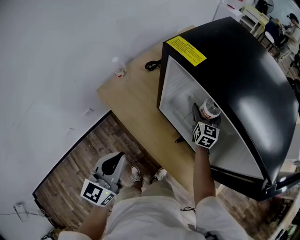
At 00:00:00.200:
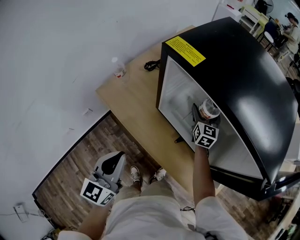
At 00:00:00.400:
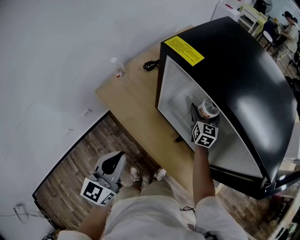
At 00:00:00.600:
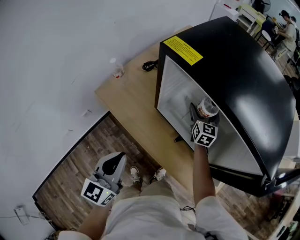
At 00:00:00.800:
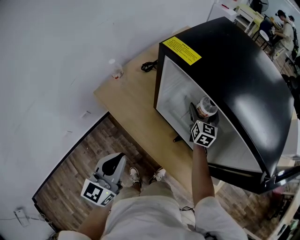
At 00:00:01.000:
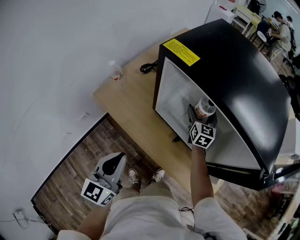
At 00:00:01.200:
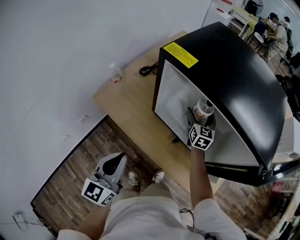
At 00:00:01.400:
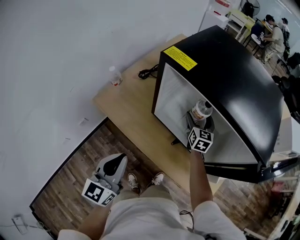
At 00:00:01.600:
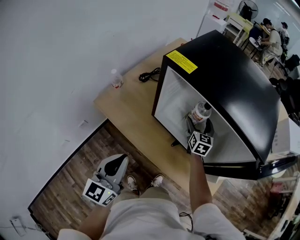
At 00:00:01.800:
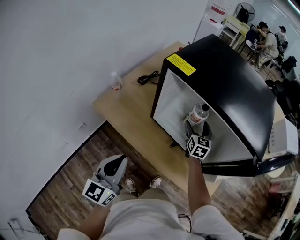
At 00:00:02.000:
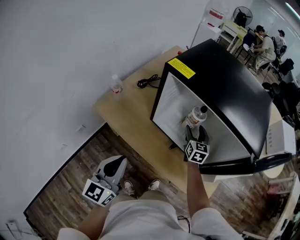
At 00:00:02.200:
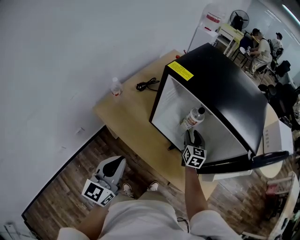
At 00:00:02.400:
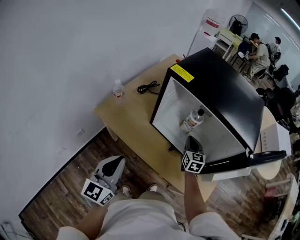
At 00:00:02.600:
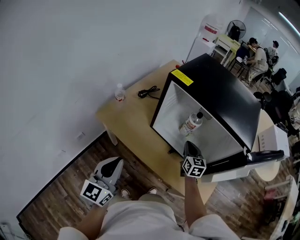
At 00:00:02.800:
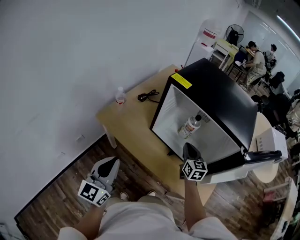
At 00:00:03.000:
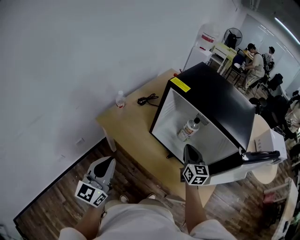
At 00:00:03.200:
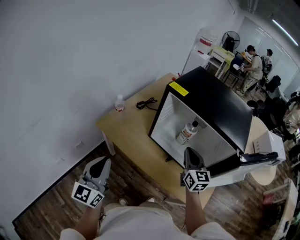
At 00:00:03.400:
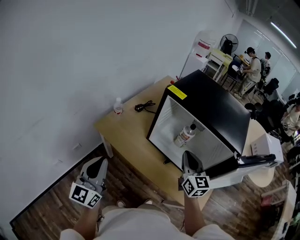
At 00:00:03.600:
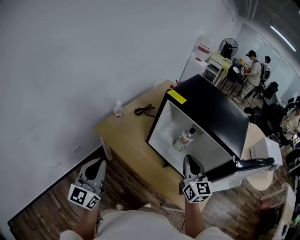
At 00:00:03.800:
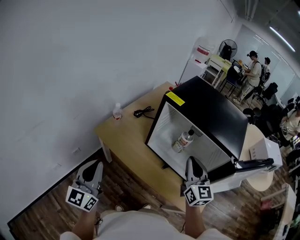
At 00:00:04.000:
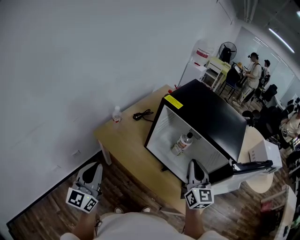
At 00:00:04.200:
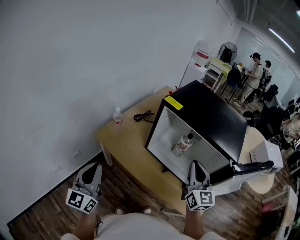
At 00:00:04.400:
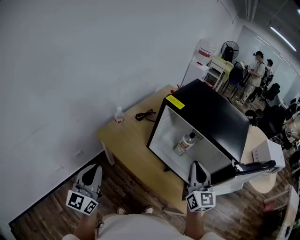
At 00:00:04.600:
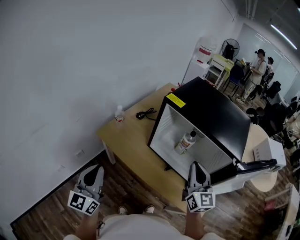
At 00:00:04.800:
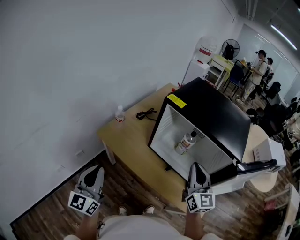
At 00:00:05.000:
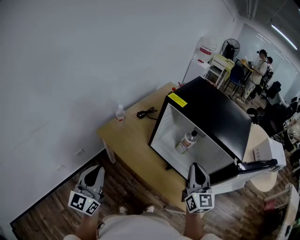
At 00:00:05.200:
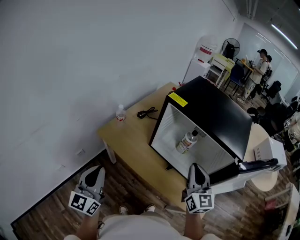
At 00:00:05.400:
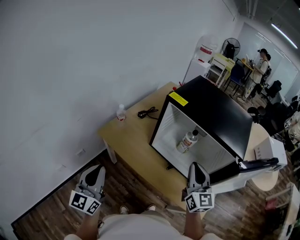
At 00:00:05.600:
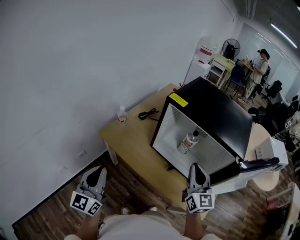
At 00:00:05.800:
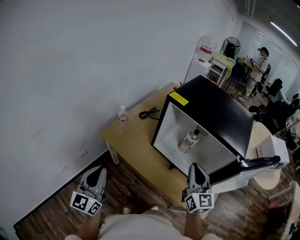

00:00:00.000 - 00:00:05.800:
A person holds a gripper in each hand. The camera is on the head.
00:00:00.000 - 00:00:01.400: The grippers make only small movements.
00:00:01.400 - 00:00:02.800: The left gripper is displaced to the left and backward by about 10 cm. The right gripper travels backward and upward by some 15 cm, and closes up.
00:00:02.800 - 00:00:04.400: The right gripper heads upward and backward, covering approximately 20 cm, and turns by approximately 20 degrees. Meanwhile the left gripper heads to the left, covering some 5 cm.
00:00:04.400 - 00:00:05.800: The grippers move only a little.

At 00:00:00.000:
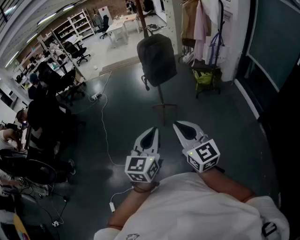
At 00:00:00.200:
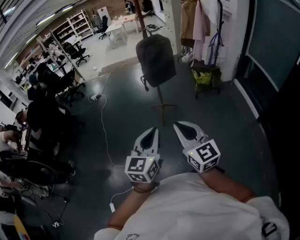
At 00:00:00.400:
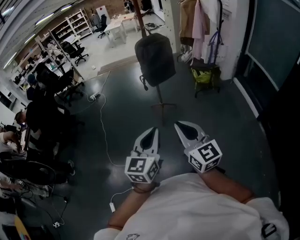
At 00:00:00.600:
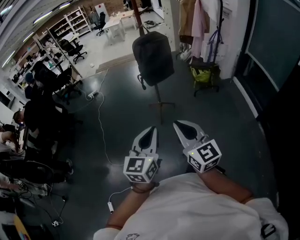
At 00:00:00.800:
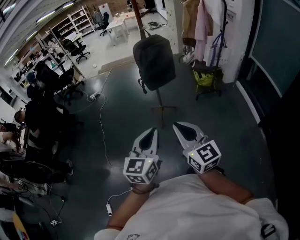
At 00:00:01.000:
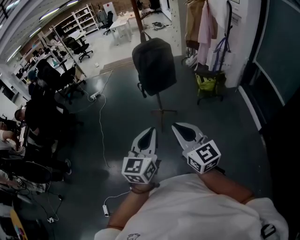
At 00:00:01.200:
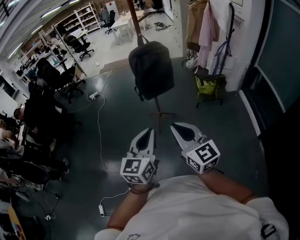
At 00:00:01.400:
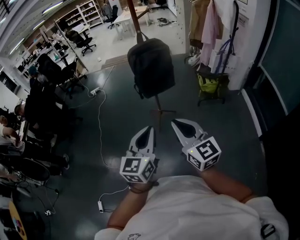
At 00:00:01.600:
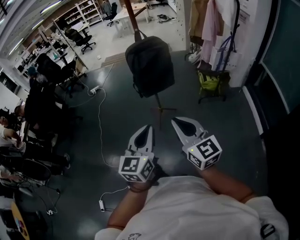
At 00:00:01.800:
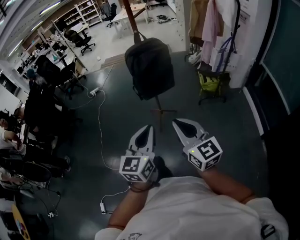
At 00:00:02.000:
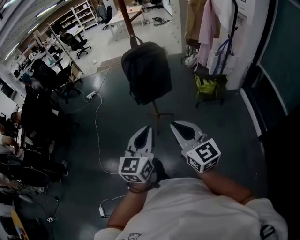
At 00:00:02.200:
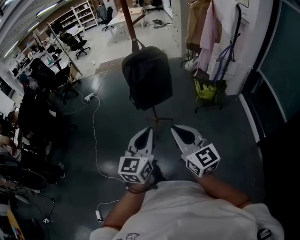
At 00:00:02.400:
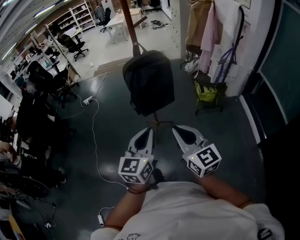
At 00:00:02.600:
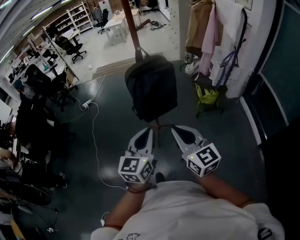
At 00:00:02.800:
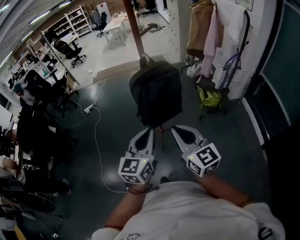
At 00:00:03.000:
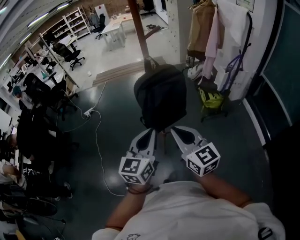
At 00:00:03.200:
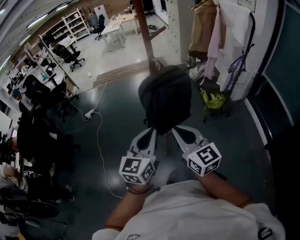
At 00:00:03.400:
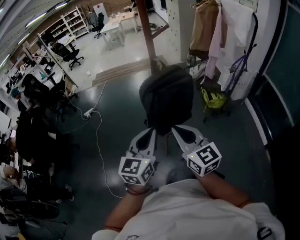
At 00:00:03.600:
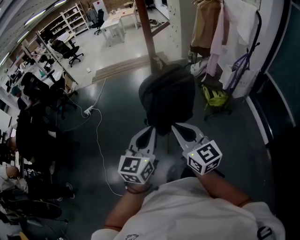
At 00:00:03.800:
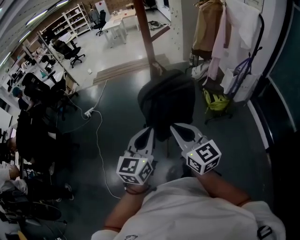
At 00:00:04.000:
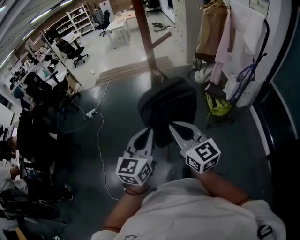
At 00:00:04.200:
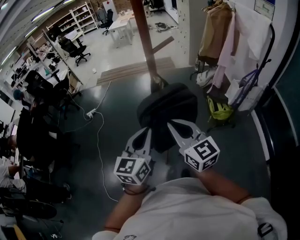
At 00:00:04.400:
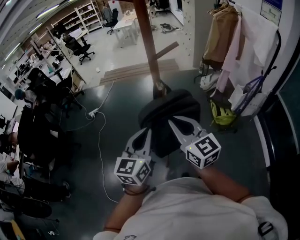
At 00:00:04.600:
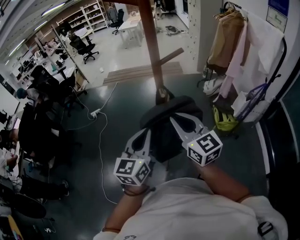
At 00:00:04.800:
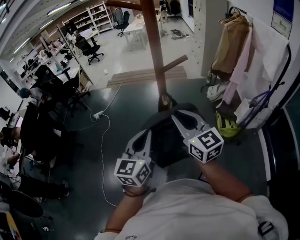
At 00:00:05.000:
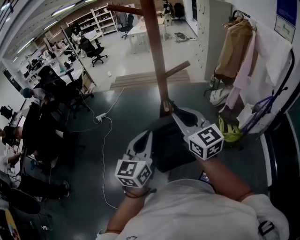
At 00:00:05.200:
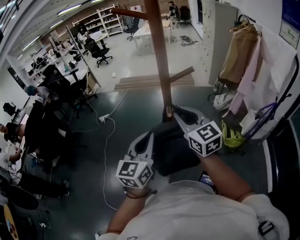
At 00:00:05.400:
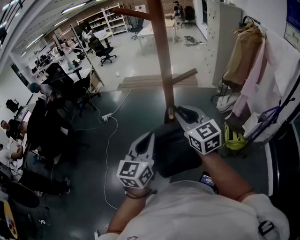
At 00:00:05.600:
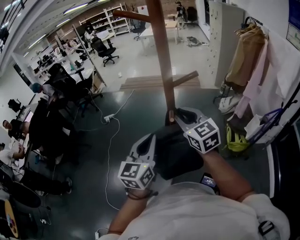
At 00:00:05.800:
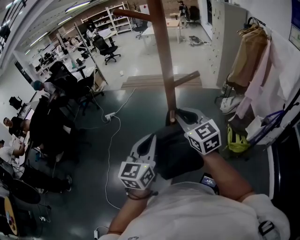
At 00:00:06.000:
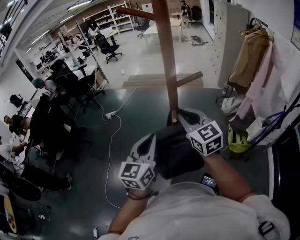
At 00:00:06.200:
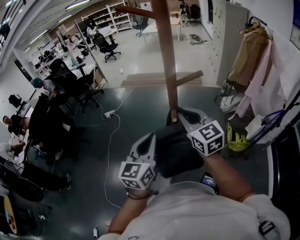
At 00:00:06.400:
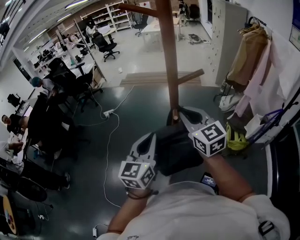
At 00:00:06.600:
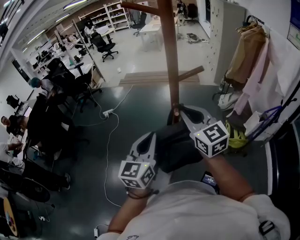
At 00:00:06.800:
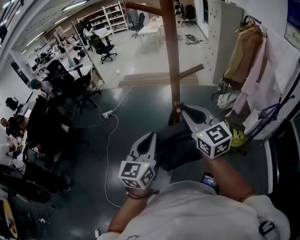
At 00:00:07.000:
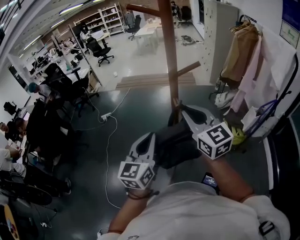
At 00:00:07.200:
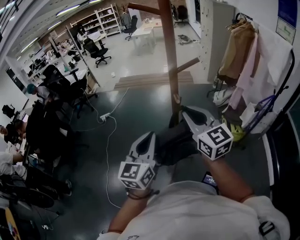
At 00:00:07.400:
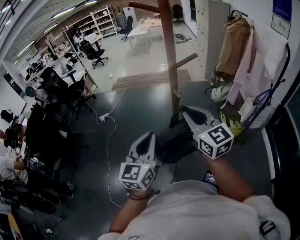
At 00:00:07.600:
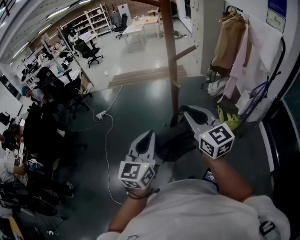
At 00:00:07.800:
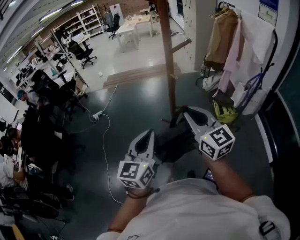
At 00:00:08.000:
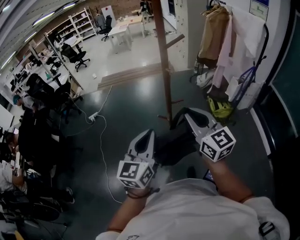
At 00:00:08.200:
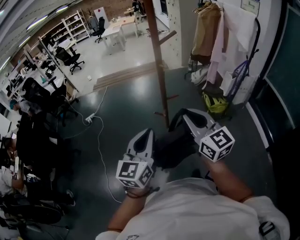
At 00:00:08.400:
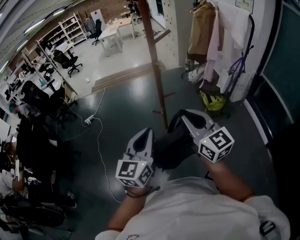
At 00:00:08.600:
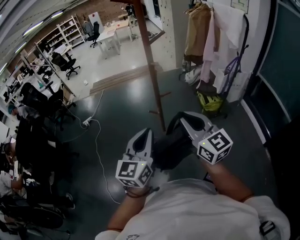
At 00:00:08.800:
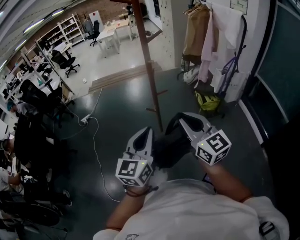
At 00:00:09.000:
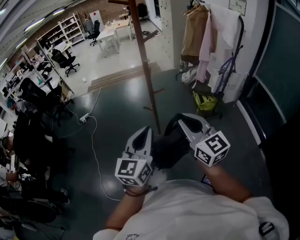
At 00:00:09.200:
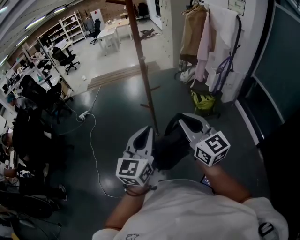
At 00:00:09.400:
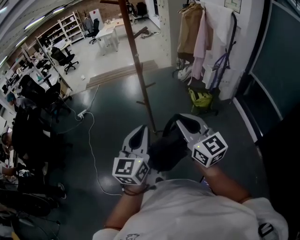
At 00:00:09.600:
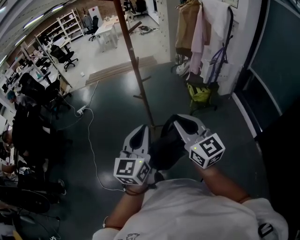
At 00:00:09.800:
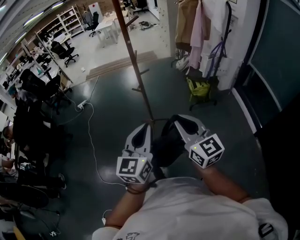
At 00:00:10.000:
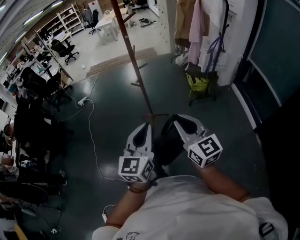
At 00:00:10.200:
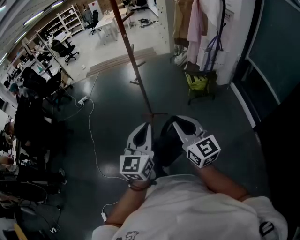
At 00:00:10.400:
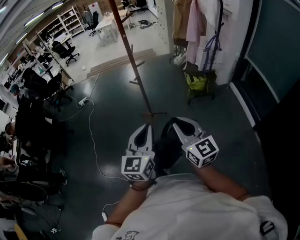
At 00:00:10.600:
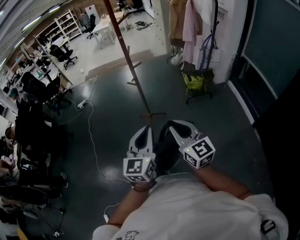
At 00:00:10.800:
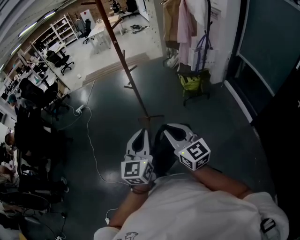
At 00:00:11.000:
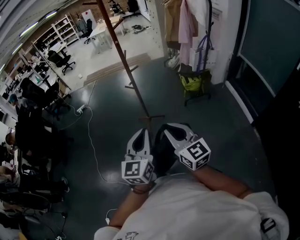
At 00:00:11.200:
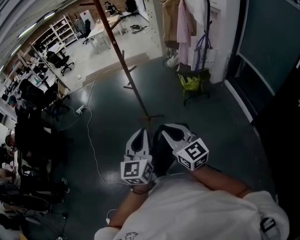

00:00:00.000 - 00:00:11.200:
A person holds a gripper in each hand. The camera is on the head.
00:00:00.000 - 00:00:01.600: The two grippers go about 25 cm forward and to the right.
00:00:01.600 - 00:00:03.200: The two grippers go some 30 cm forward.
00:00:03.200 - 00:00:04.800: Both grippers move forward, about 25 cm.
00:00:04.800 - 00:00:06.400: The right gripper shifts some 10 cm forward.
00:00:06.400 - 00:00:08.000: The right gripper goes some 25 cm backward. The left gripper heads backward and to the left, covering approximately 20 cm.
00:00:08.000 - 00:00:09.600: The left gripper moves backward and to the right, some 25 cm. The right gripper travels backward by about 25 cm.
00:00:09.600 - 00:00:11.200: The right gripper moves backward and downward, approximately 15 cm. The left gripper travels backward by about 15 cm.

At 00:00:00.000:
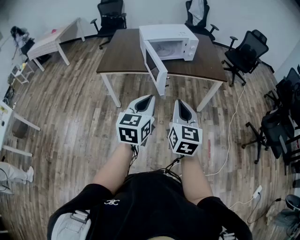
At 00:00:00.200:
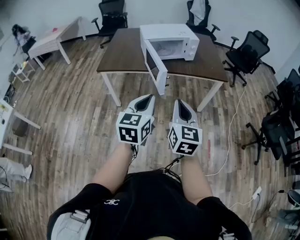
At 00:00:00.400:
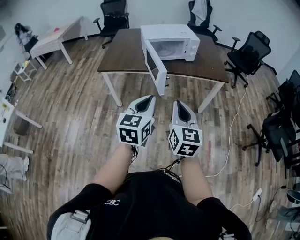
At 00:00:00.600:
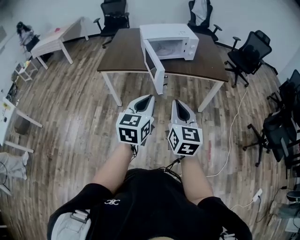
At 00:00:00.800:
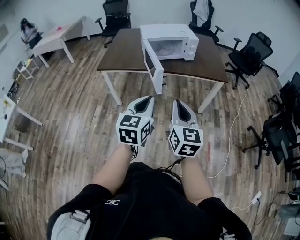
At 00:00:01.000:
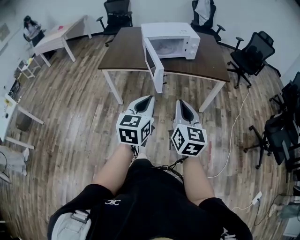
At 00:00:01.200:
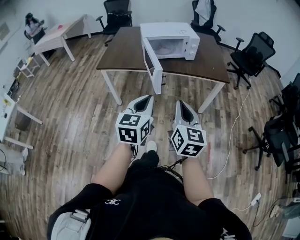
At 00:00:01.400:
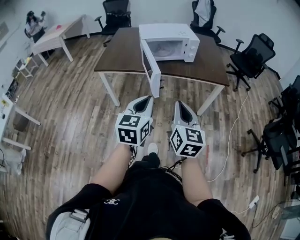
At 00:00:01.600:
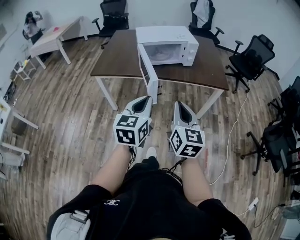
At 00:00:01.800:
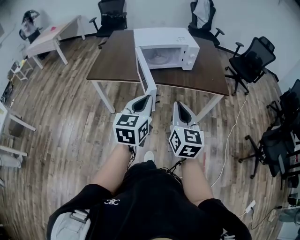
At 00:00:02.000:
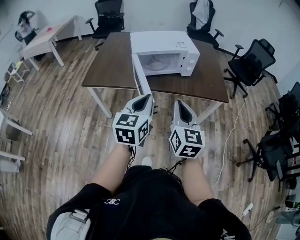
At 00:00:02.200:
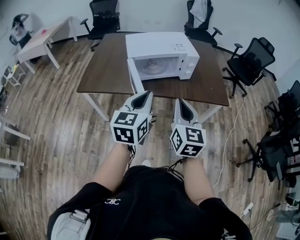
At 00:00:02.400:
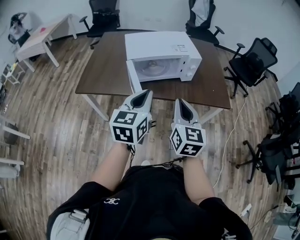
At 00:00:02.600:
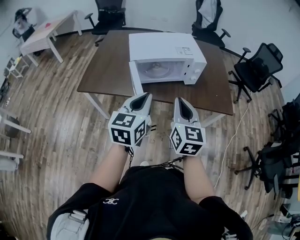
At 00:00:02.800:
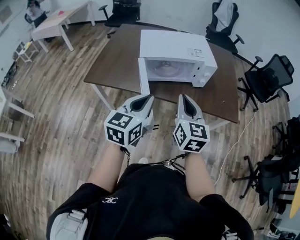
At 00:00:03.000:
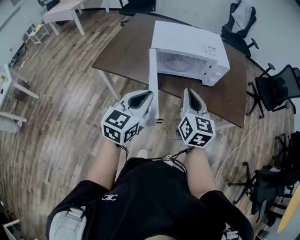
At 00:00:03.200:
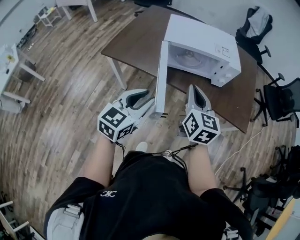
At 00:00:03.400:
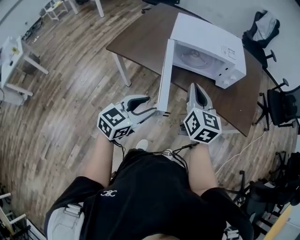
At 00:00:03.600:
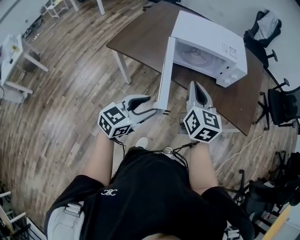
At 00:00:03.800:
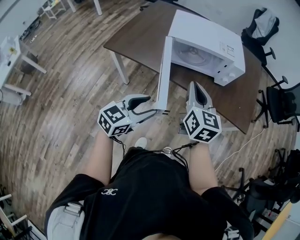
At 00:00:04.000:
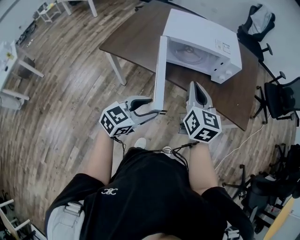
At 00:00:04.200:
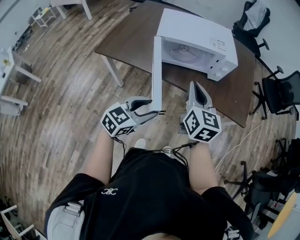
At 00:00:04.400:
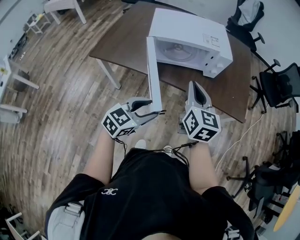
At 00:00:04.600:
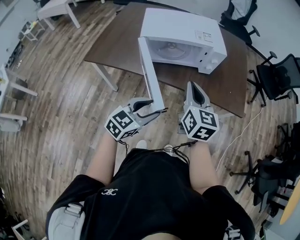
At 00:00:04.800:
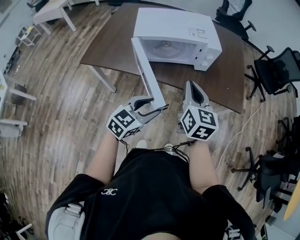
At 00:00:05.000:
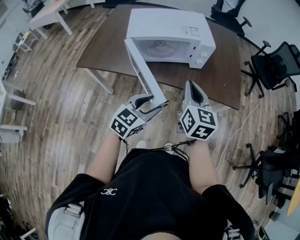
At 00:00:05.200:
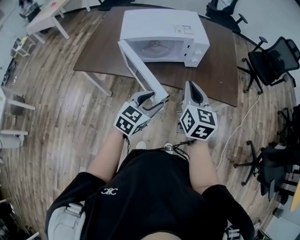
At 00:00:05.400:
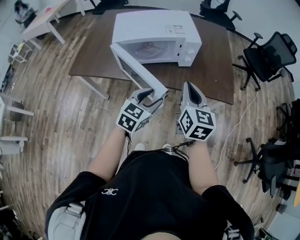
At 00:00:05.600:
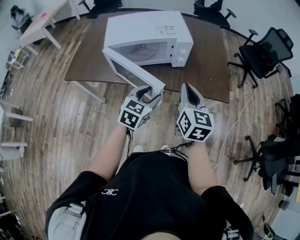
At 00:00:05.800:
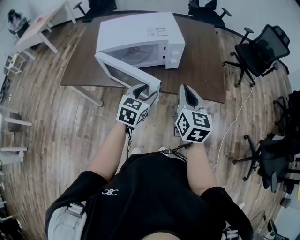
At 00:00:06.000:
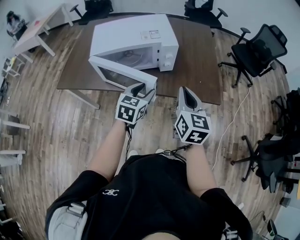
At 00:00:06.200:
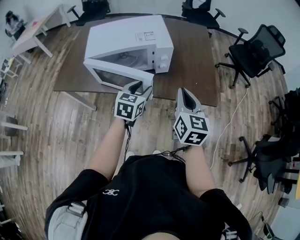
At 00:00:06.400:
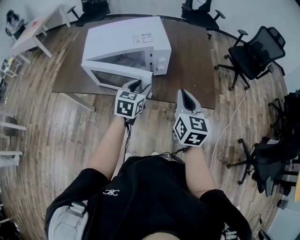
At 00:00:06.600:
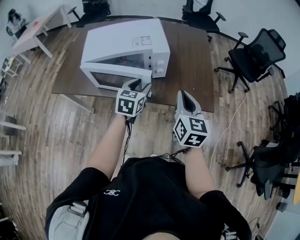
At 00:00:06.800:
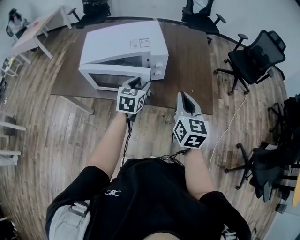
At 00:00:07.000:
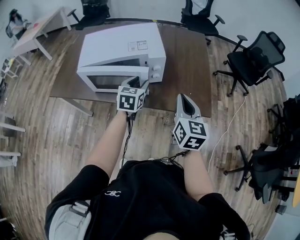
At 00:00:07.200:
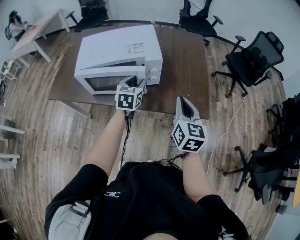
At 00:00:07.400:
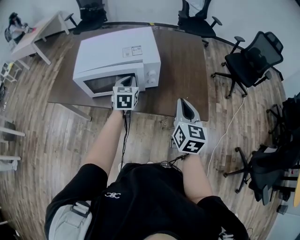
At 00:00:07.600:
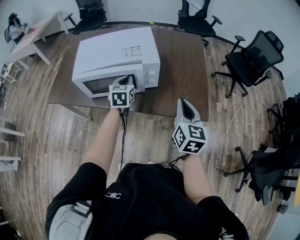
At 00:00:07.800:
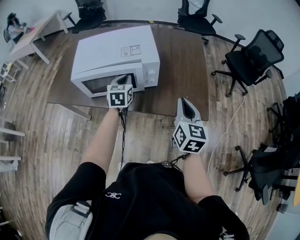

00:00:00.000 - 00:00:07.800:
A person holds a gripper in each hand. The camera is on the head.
00:00:00.000 - 00:00:01.600: The right gripper shifts some 10 cm forward and to the right. Meanwhile the left gripper moves forward, some 10 cm.
00:00:01.600 - 00:00:03.200: The right gripper goes about 30 cm forward. Meanwhile the left gripper heads forward, covering some 20 cm, and opens.
00:00:03.200 - 00:00:04.600: The right gripper shifts some 5 cm to the right. Meanwhile the left gripper travels to the right and downward by about 10 cm, rotates approximately 20 degrees, and opens up.
00:00:04.600 - 00:00:06.200: The right gripper shifts some 20 cm to the right, while the left gripper shifts roughly 25 cm forward and to the right.
00:00:06.200 - 00:00:07.800: The left gripper goes about 15 cm forward, and closes. Meanwhile the right gripper travels to the right and forward by approximately 10 cm.
